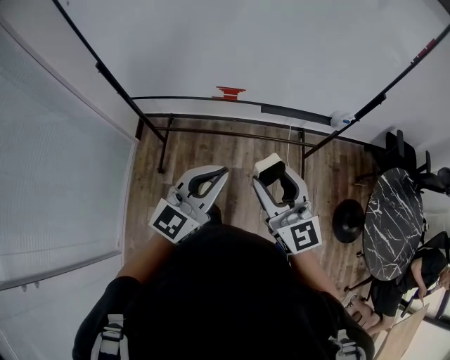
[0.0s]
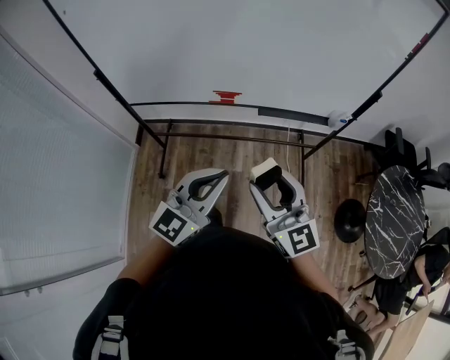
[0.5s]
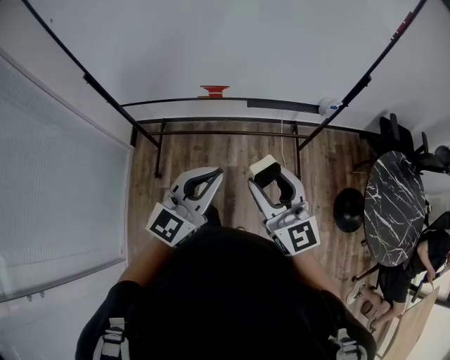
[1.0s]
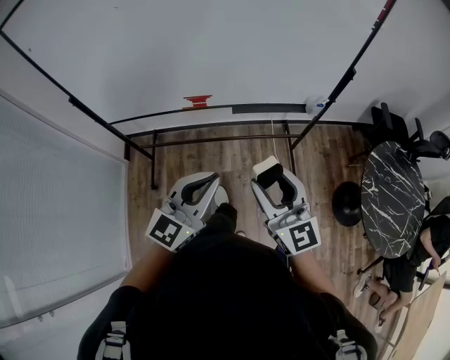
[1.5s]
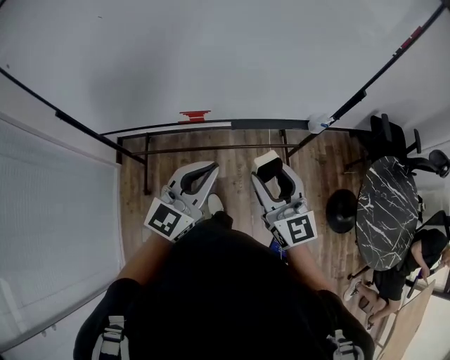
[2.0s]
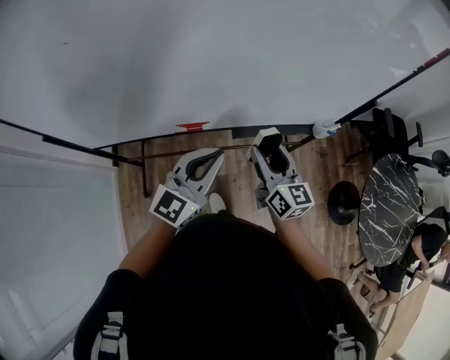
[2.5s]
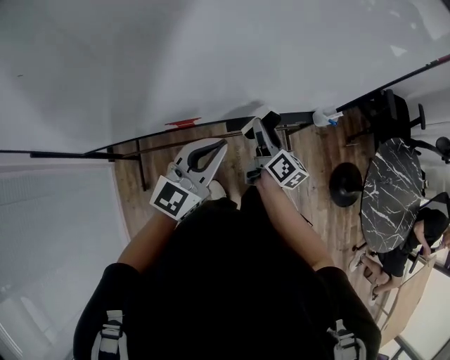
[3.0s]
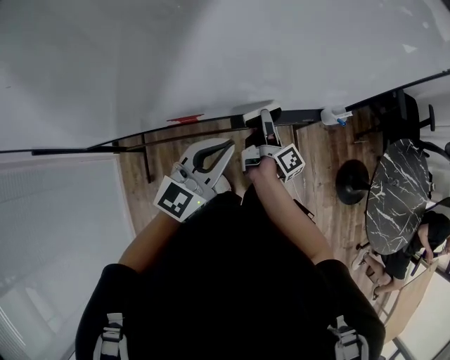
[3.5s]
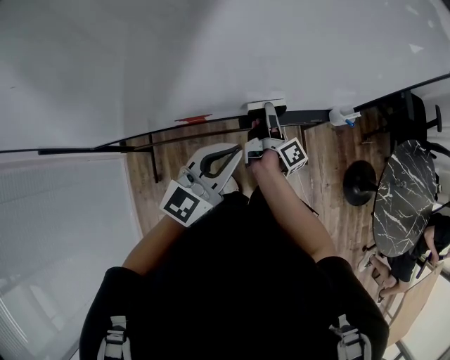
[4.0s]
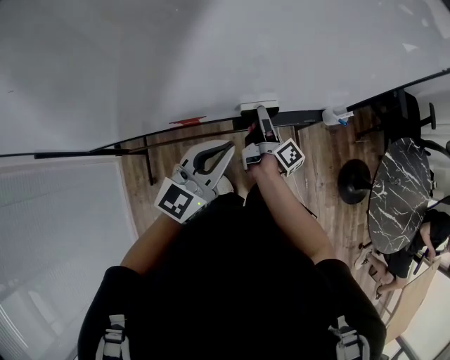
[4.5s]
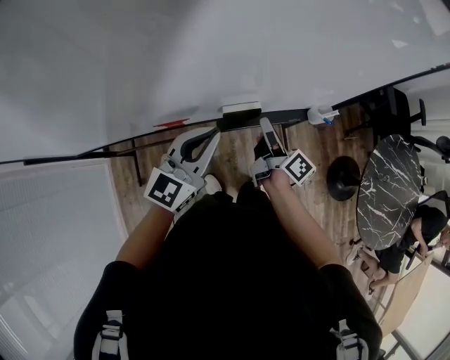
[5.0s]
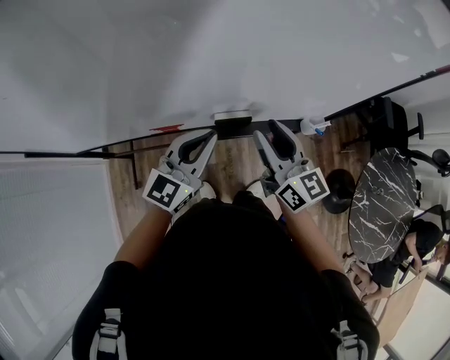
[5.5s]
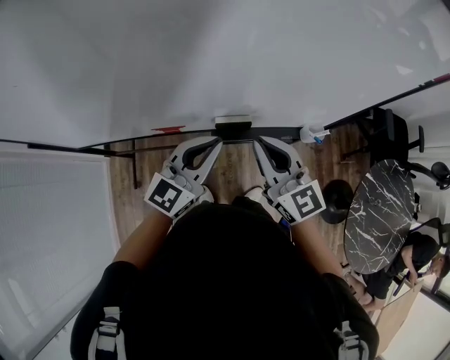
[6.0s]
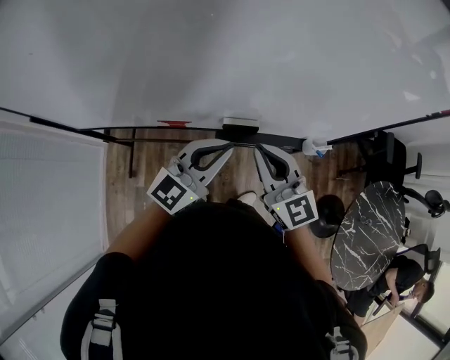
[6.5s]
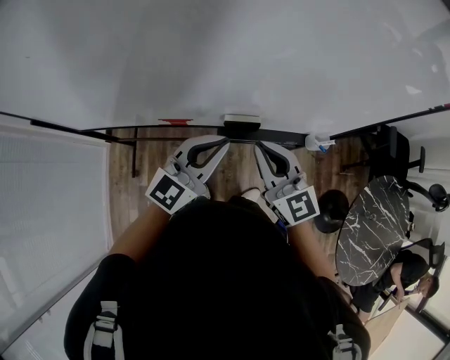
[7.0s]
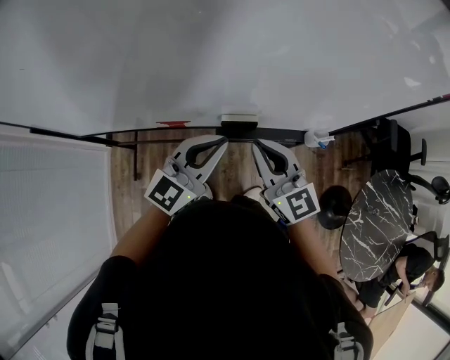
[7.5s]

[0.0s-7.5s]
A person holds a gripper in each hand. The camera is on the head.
0.0s to 2.0s: The left gripper goes roughly 15 cm forward; the right gripper goes about 15 cm forward and to the right.
2.0s to 4.0s: The right gripper heads forward and downward, covering roughly 35 cm, and twists some 80 degrees clockwise, seen from behind; the left gripper is displaced forward by roughly 15 cm.
4.0s to 5.5s: The left gripper is displaced forward by approximately 5 cm. The right gripper goes some 20 cm upward, and twists about 60 degrees counterclockwise, seen from behind.
5.5s to 7.5s: The right gripper rotates some 20 degrees, and closes up.

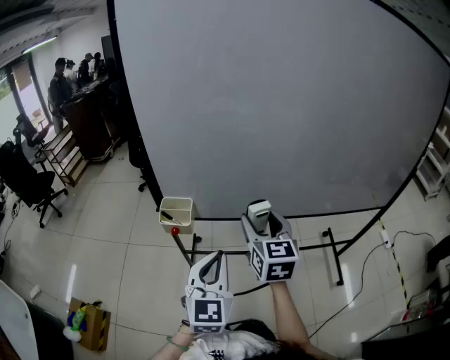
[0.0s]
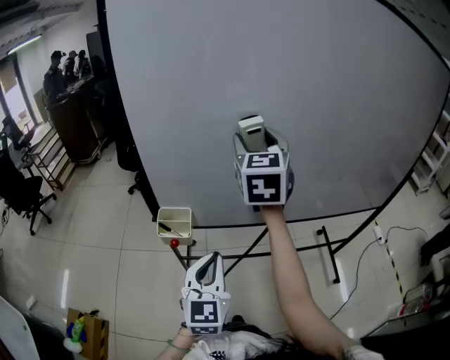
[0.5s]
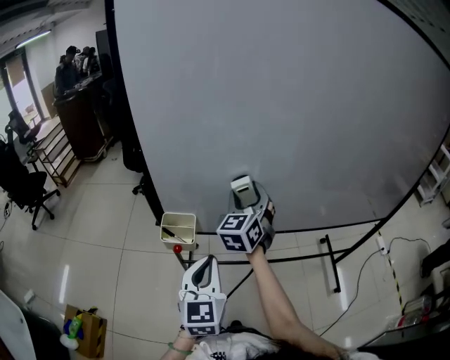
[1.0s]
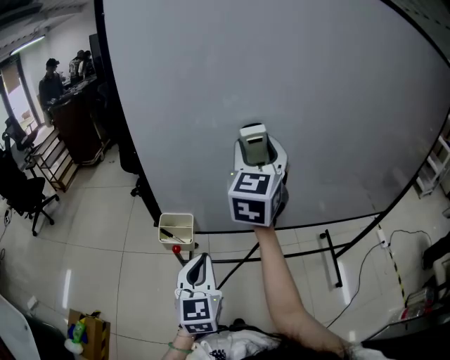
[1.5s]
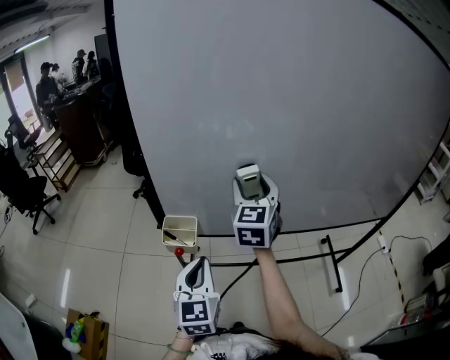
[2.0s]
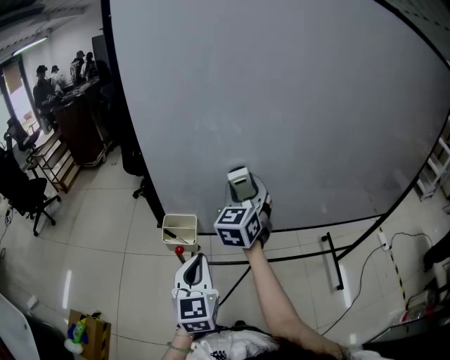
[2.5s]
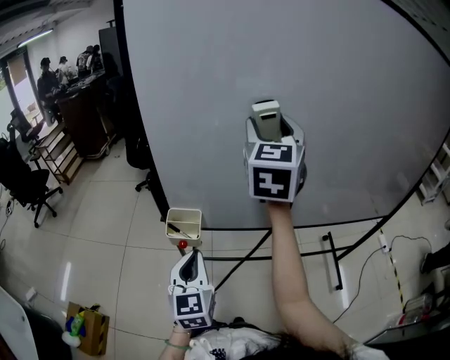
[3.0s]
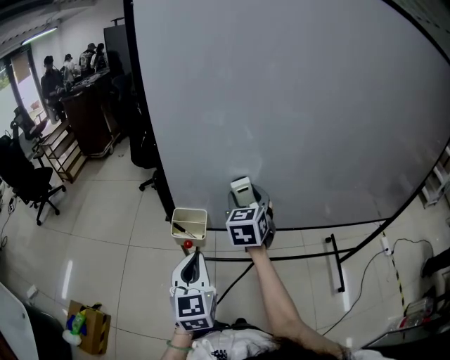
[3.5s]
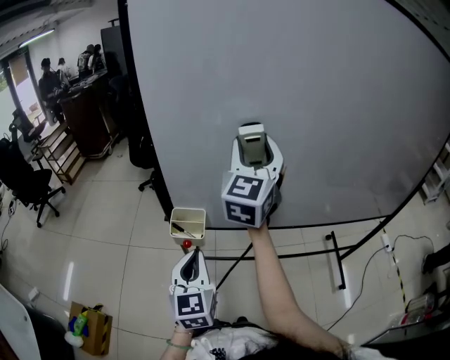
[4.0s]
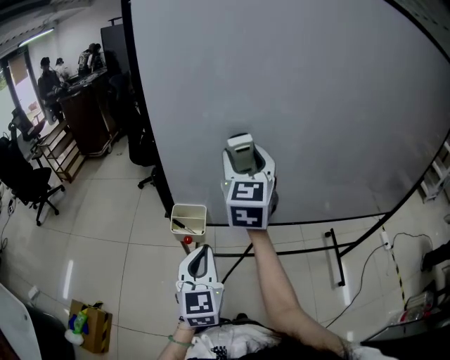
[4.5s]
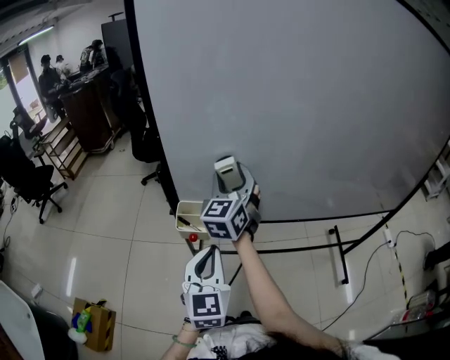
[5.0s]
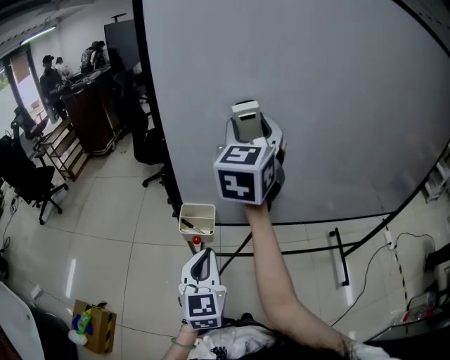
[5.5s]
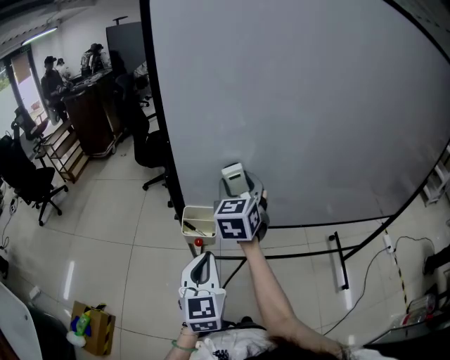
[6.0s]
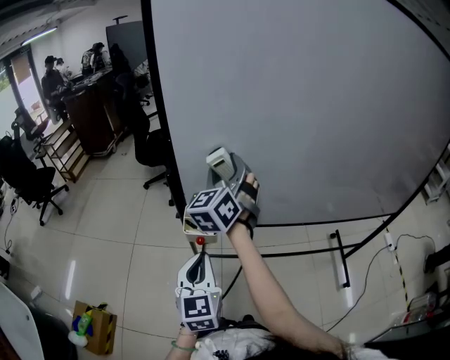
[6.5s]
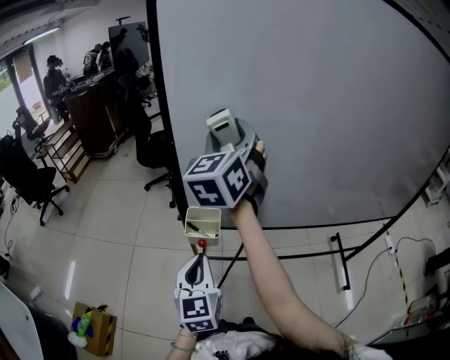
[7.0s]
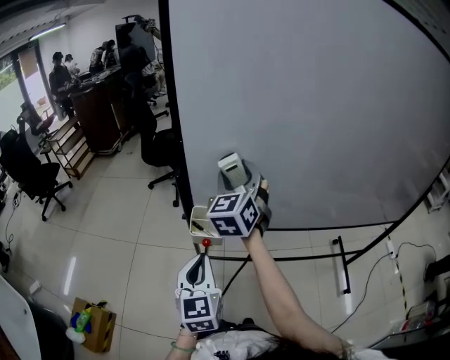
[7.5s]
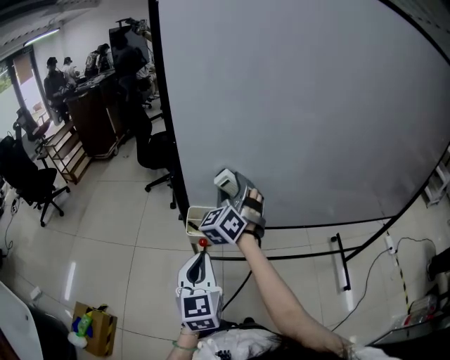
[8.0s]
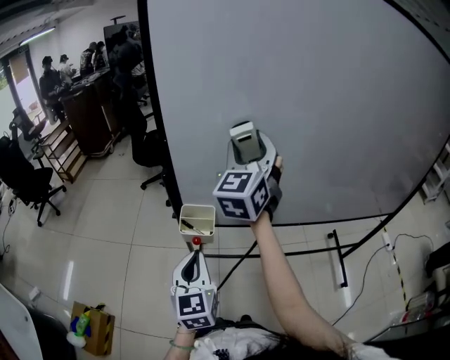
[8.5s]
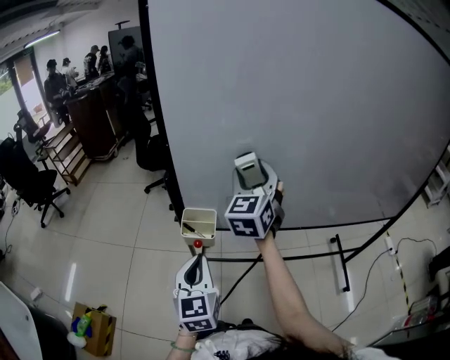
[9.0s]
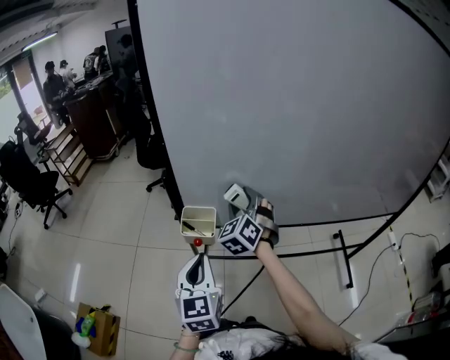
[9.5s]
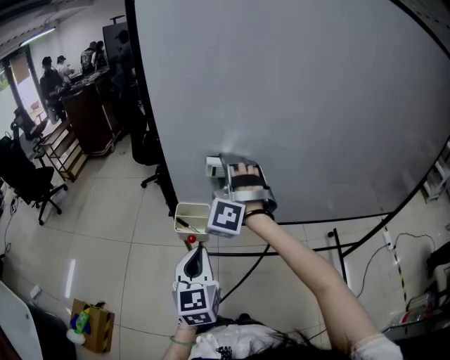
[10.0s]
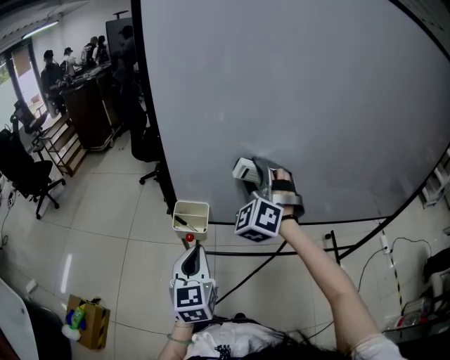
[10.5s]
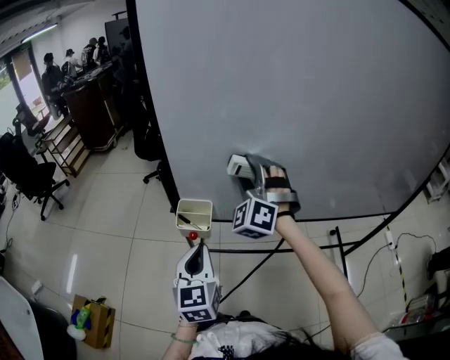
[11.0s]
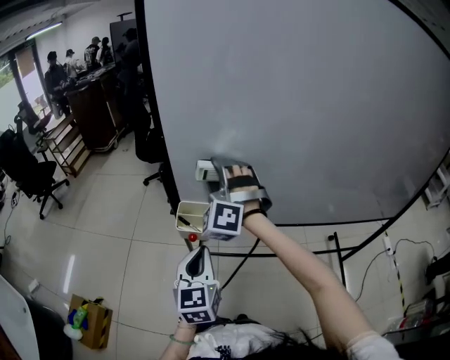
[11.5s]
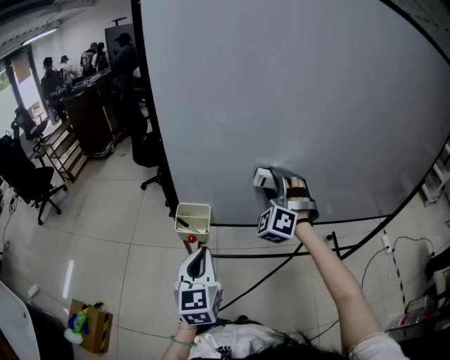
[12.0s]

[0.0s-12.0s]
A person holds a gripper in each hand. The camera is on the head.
0.0s to 2.0s: The right gripper moves up and down over approximately 20 cm, changing direction 3 times, while the left gripper moves to the left and forward, approximately 10 cm.
2.0s to 4.0s: The right gripper swings up and down, some 25 cm each way, with 2 reversals.
4.0s to 6.0s: The right gripper goes up and down, some 20 cm each way, reversing 2 times, and rotates some 20 degrees.
6.0s to 8.0s: The right gripper moves roughly 15 cm upward and comes back, and rotates roughly 30 degrees.
8.0s to 10.0s: The right gripper goes up and down, approximately 20 cm each way, reversing 2 times, and turns by about 40 degrees.
10.0s to 12.0s: The right gripper swings left and right, roughly 15 cm each way, with 2 reversals.

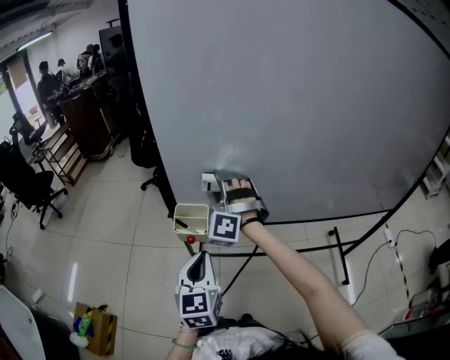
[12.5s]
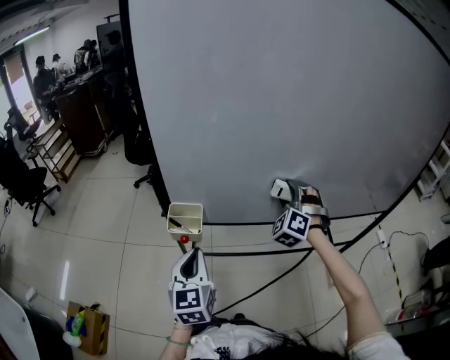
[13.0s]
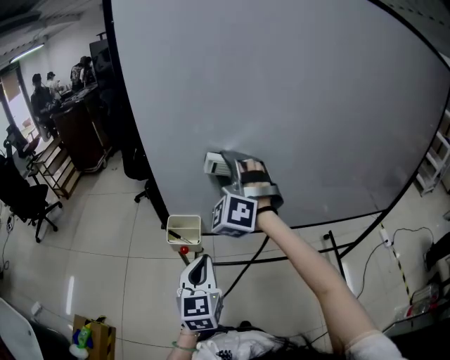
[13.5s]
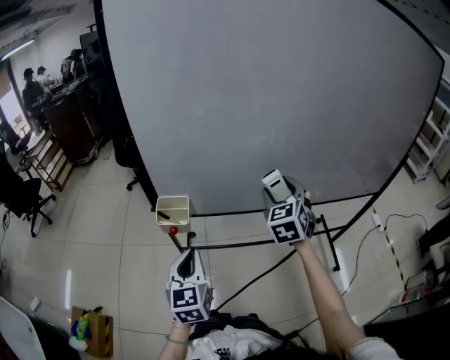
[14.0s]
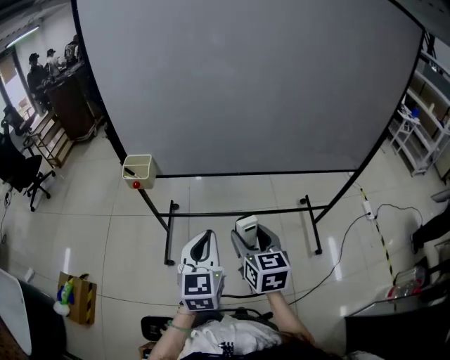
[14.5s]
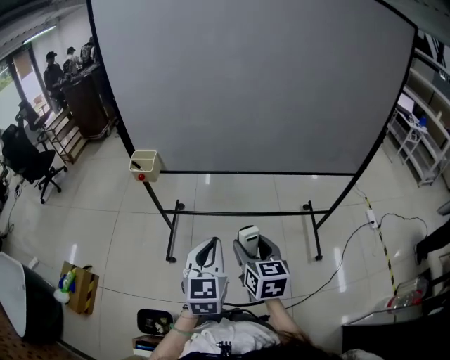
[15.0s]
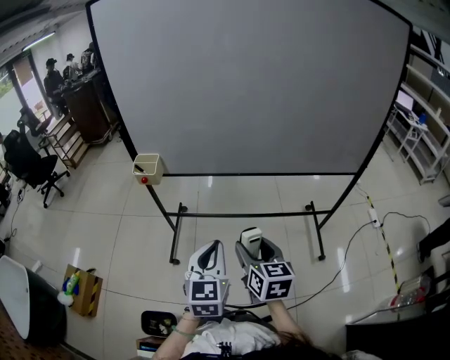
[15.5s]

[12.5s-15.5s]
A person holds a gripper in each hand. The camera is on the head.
12.5s to 14.0s: The right gripper goes left and right, about 25 cm each way, reversing 2 times, and twists some 50 degrees clockwise, seen from behind.
14.0s to 15.5s: The left gripper heads to the right and backward, covering about 35 cm. Meanwhile the right gripper travels backward by roughly 35 cm, and changes its angle by some 50 degrees.

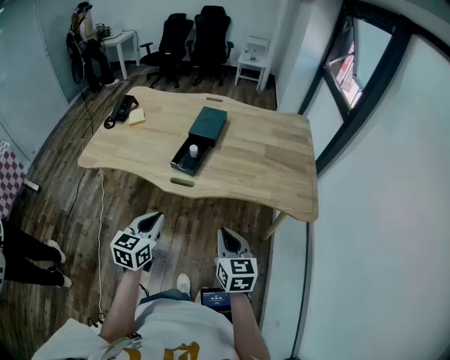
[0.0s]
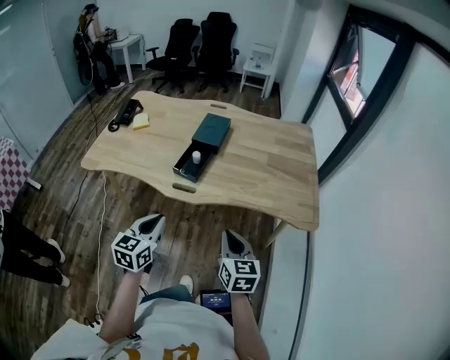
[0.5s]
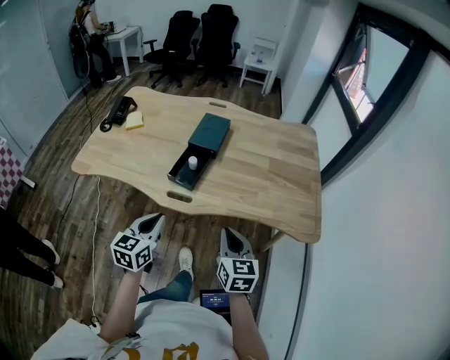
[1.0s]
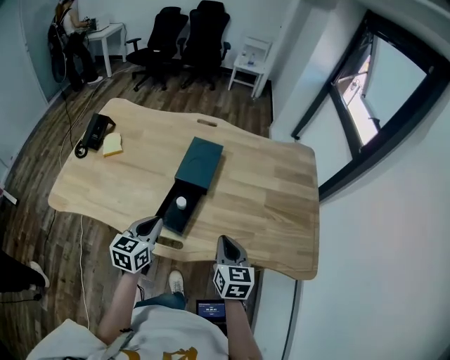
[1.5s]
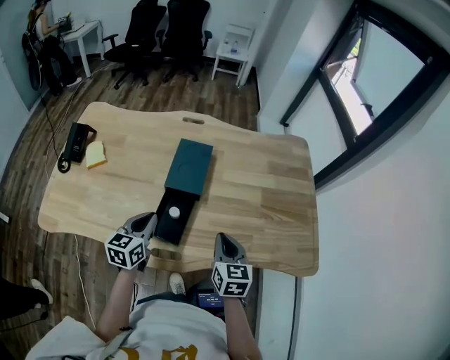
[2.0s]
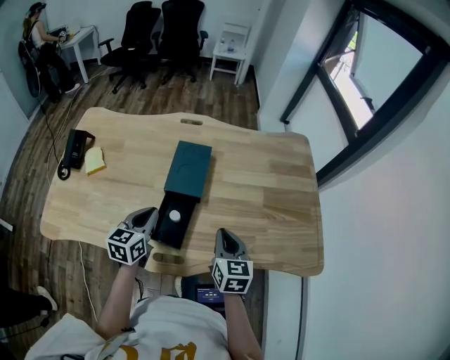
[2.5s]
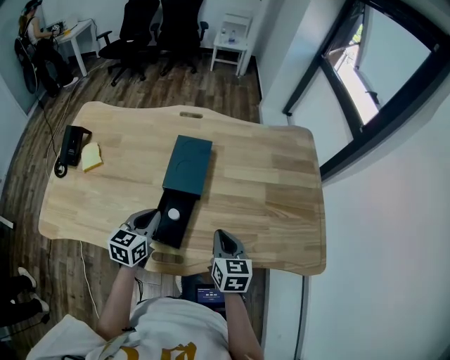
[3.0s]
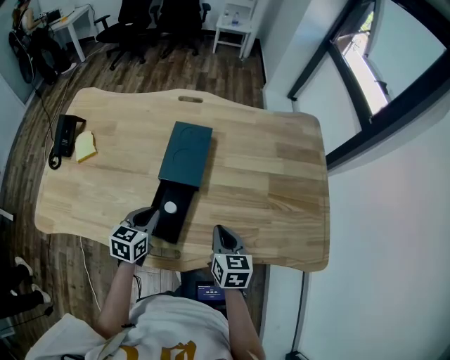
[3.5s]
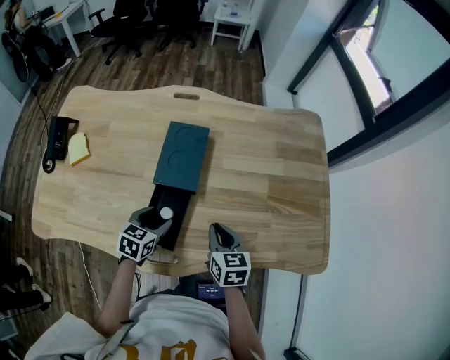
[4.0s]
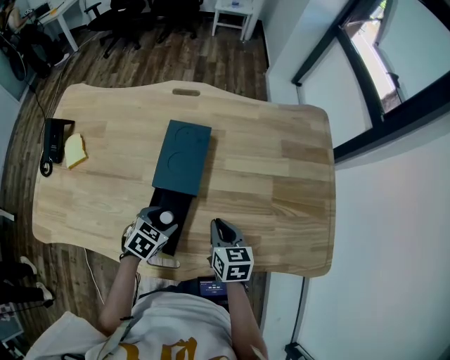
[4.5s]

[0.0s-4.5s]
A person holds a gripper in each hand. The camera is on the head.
0.0s to 2.0s: Both grippers move forward, roughly 35 cm.
2.0s to 4.5s: The right gripper heads downward and forward, covering approximately 15 cm; the left gripper shifts some 15 cm downward, forward and to the right, points its fingers about 30 degrees further downward, and opens up.
